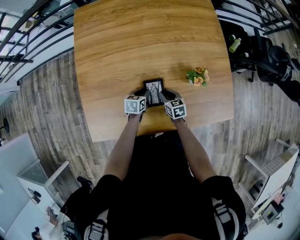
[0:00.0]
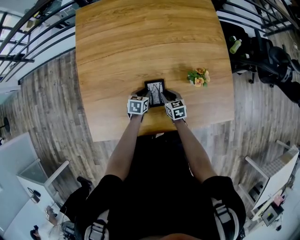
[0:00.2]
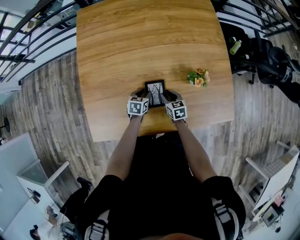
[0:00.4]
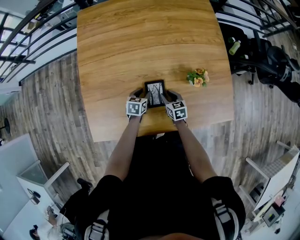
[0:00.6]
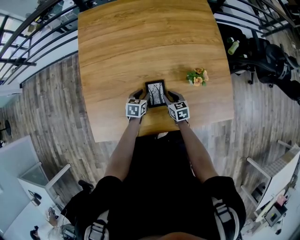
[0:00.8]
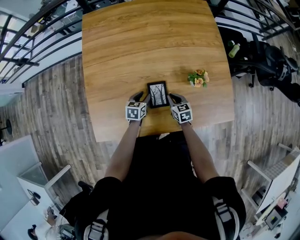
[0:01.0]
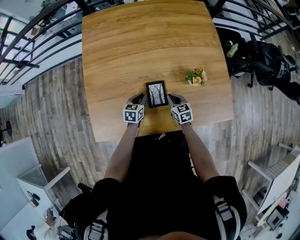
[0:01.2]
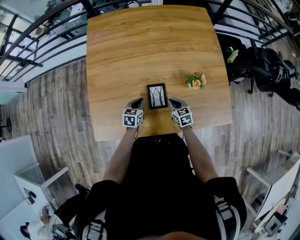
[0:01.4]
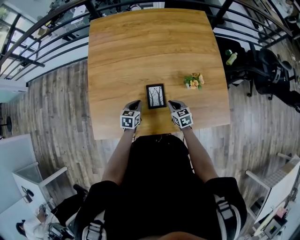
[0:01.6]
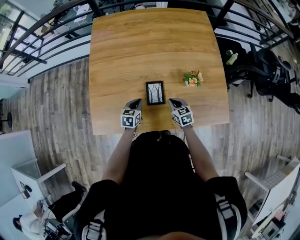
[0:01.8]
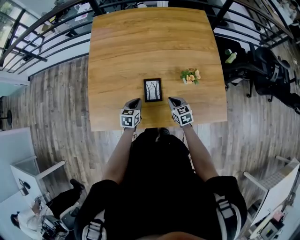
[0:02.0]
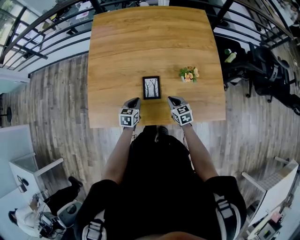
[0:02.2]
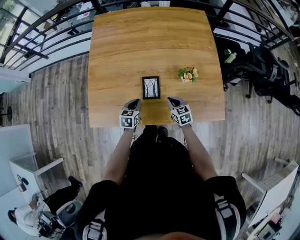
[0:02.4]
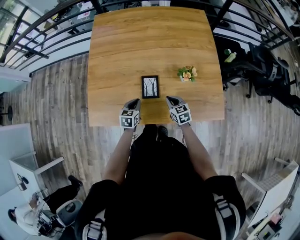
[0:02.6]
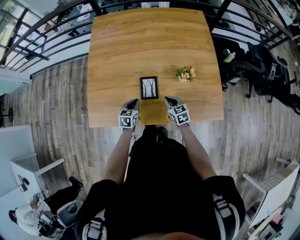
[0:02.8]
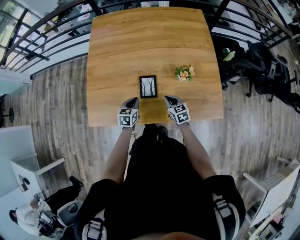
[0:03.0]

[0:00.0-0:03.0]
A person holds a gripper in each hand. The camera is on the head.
0:00.0 to 0:01.6: The right gripper shifts by about 5 cm; the left gripper is displaced upward and backward by approximately 10 cm.
0:01.6 to 0:03.0: The left gripper heads backward, covering some 5 cm. Meanwhile the right gripper moves some 5 cm.

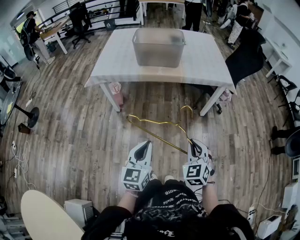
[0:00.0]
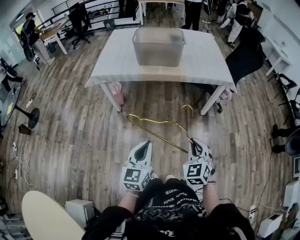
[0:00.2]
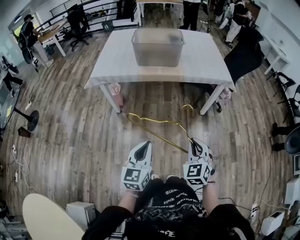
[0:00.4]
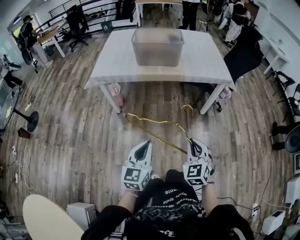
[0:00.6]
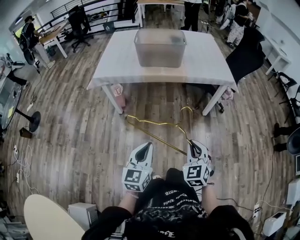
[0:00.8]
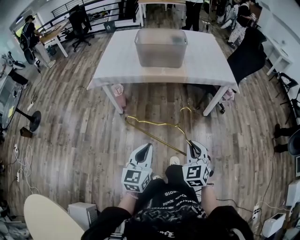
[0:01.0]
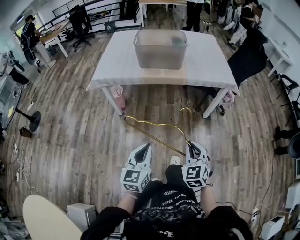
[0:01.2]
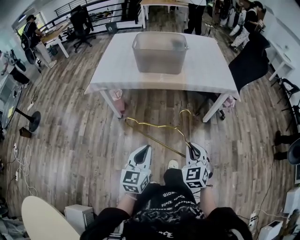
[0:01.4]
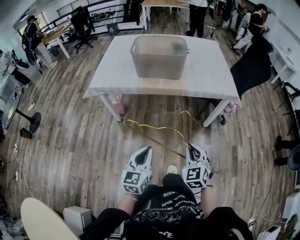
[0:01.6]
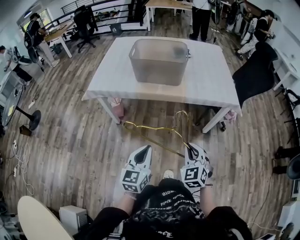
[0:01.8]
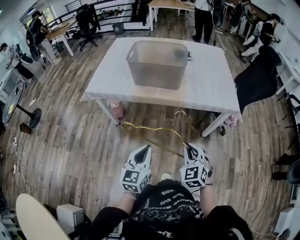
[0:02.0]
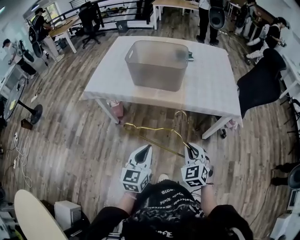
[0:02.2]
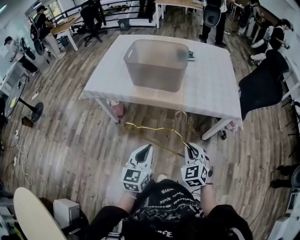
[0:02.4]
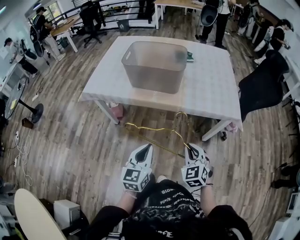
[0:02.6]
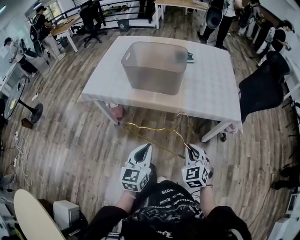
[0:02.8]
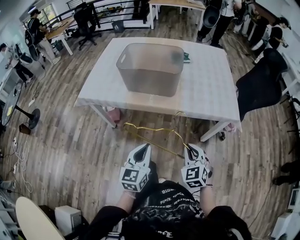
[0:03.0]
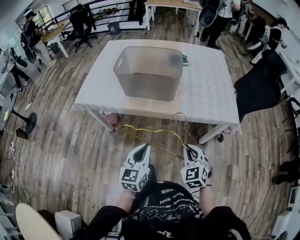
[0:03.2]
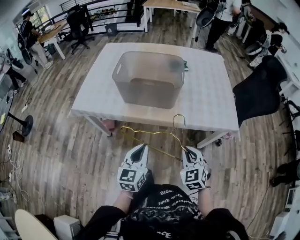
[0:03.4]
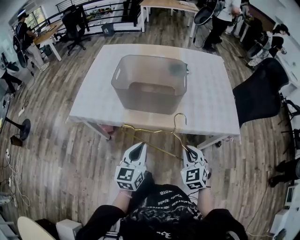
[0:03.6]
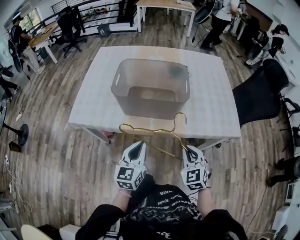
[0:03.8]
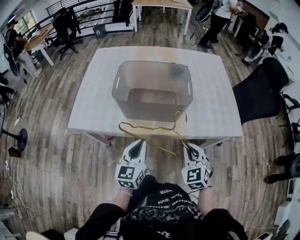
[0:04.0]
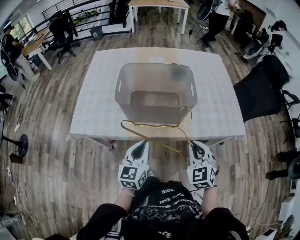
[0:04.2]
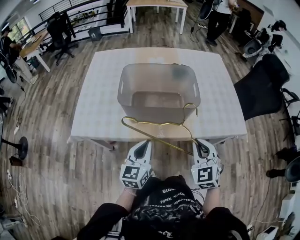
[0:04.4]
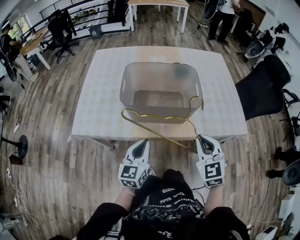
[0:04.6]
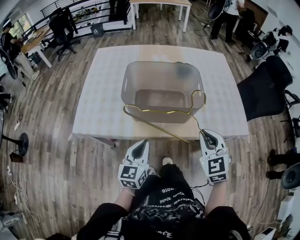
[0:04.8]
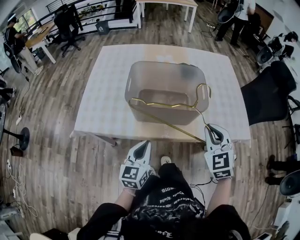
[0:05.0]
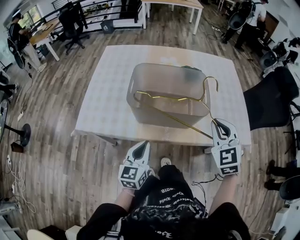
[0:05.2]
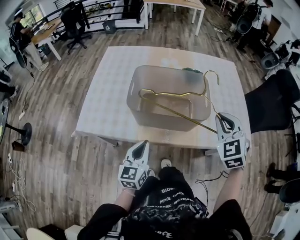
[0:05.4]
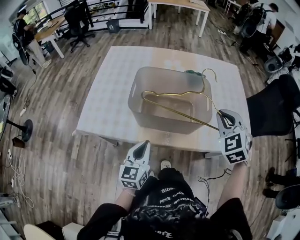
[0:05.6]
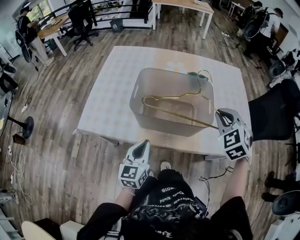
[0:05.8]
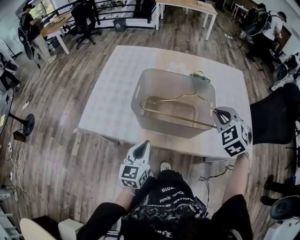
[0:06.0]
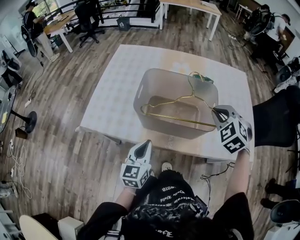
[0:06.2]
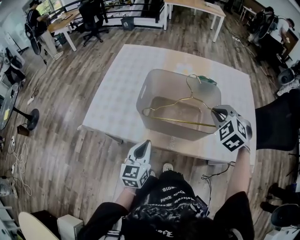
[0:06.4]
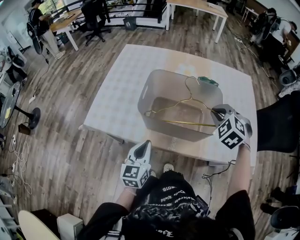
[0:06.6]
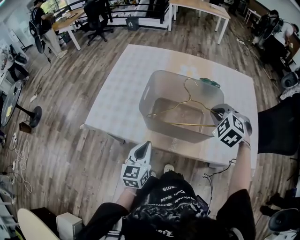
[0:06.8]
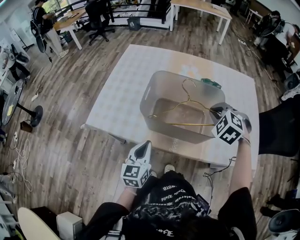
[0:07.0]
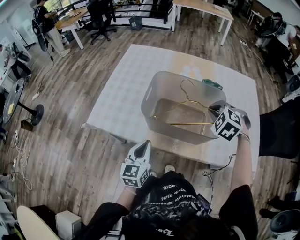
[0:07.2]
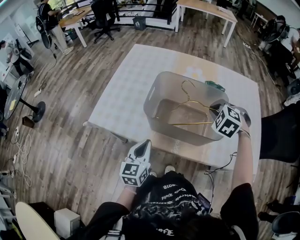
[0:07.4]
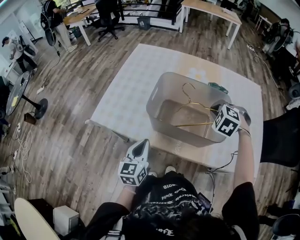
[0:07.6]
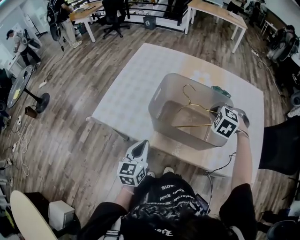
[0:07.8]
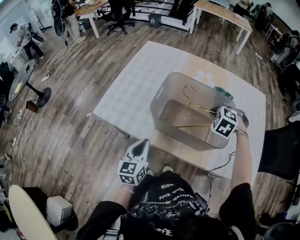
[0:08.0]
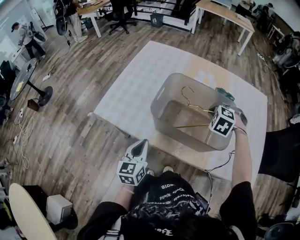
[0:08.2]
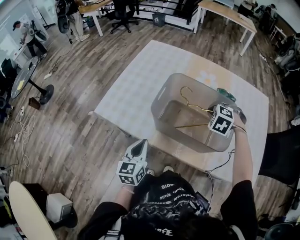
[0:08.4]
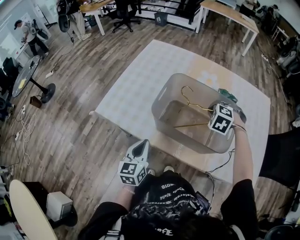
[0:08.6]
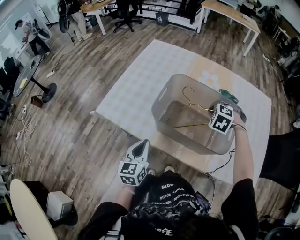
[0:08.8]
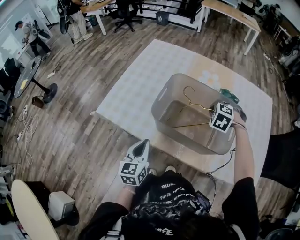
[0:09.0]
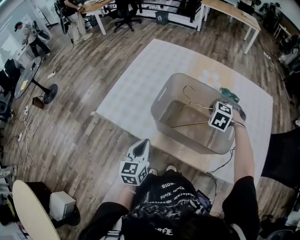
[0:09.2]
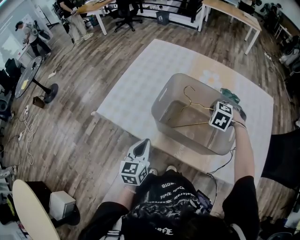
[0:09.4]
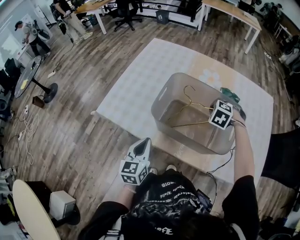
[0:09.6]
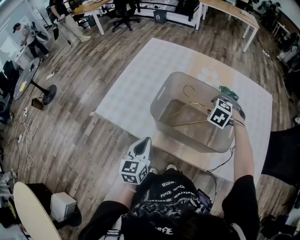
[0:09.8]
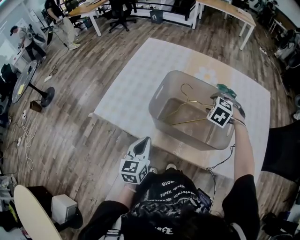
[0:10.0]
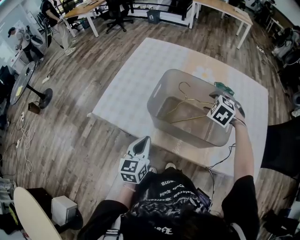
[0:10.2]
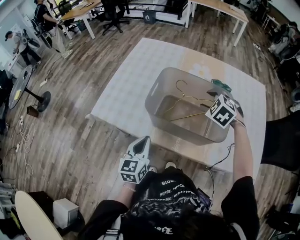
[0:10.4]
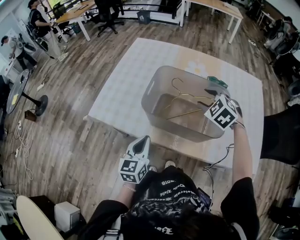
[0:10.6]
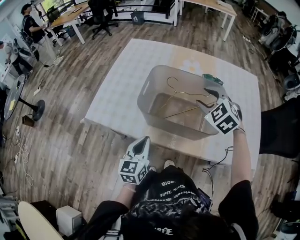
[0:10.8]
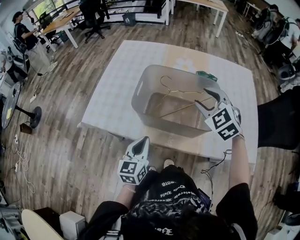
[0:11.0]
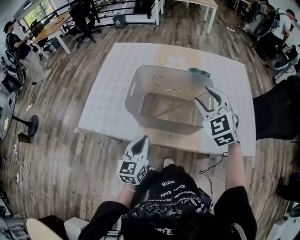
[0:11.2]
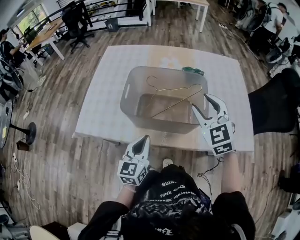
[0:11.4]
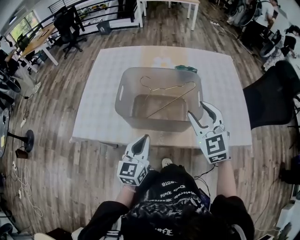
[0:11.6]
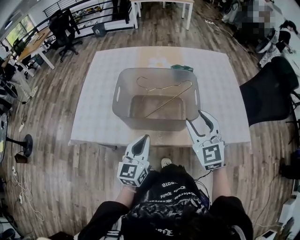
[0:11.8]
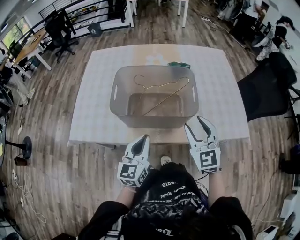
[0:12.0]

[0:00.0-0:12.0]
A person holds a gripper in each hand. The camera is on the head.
0:00.0 to 0:01.6: The grippers both shift forward by roughly 15 cm.
0:01.6 to 0:03.0: Both grippers travel together forward and to the right, some 25 cm.
0:03.0 to 0:04.4: The two grippers go some 35 cm forward and to the left.
0:04.4 to 0:06.0: The left gripper heads forward, covering roughly 5 cm. The right gripper goes about 20 cm forward, and rotates some 20 degrees.
0:06.0 to 0:07.6: The right gripper heads forward, downward and to the left, covering some 15 cm, and rotates approximately 30 degrees. Meanwhile the left gripper goes some 5 cm to the left.
0:07.6 to 0:09.0: The right gripper moves forward and downward, approximately 10 cm.
0:09.0 to 0:10.4: The right gripper shifts about 5 cm upward, and opens up.
0:10.4 to 0:12.0: The right gripper goes approximately 20 cm backward, and tips its fingers upward by roughly 40 degrees; the left gripper is displaced to the right by some 10 cm, and rotates some 20 degrees.

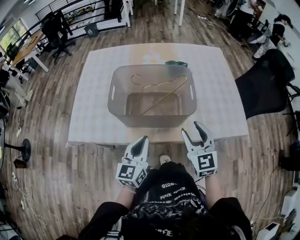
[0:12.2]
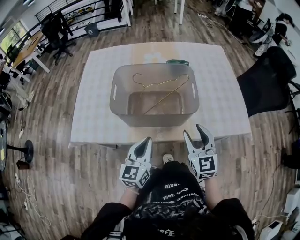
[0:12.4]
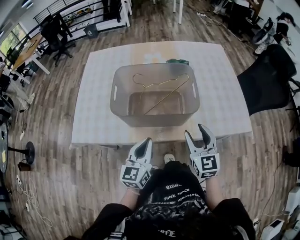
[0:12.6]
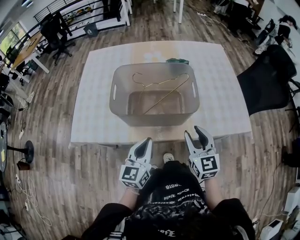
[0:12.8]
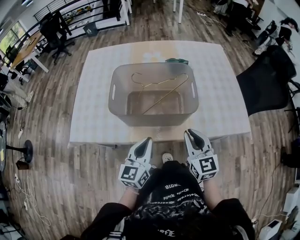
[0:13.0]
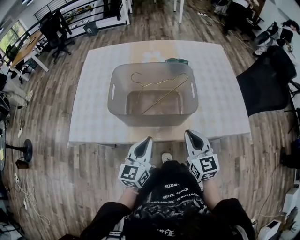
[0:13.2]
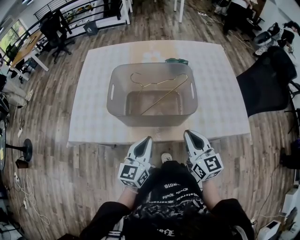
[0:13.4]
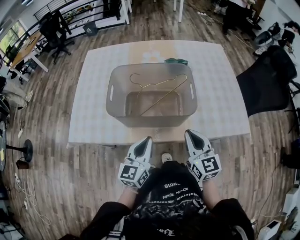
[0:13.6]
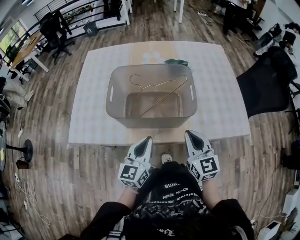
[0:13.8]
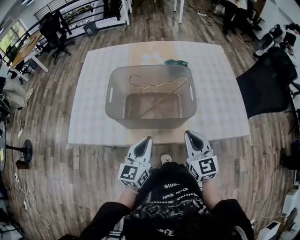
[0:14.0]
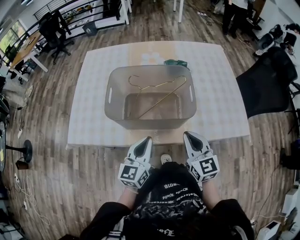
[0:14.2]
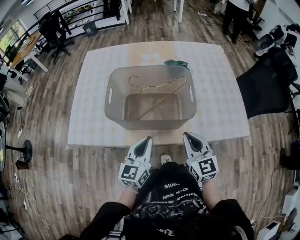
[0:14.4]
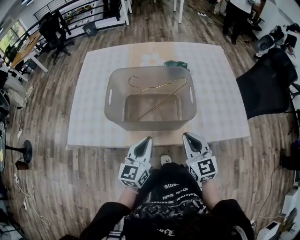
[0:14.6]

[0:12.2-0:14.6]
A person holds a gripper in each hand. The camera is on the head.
0:12.2 to 0:13.4: The right gripper swivels about 20 degrees, and closes its fingers.
0:13.4 to 0:14.6: The grippers stay close to where they were, moving slightly.

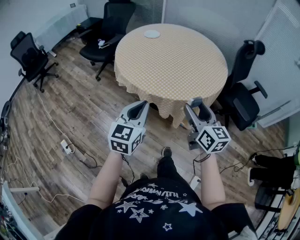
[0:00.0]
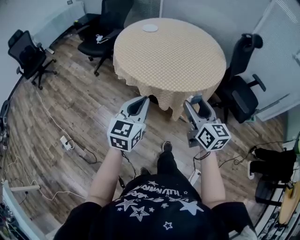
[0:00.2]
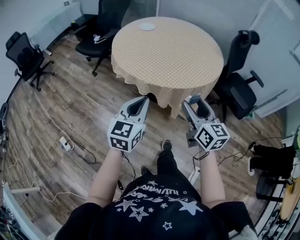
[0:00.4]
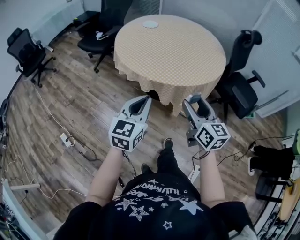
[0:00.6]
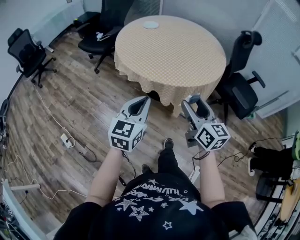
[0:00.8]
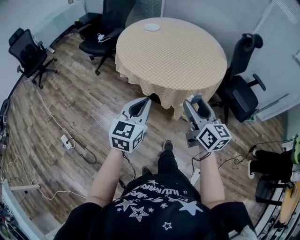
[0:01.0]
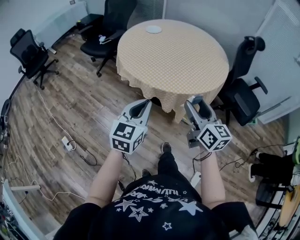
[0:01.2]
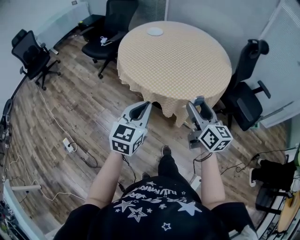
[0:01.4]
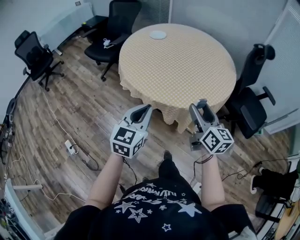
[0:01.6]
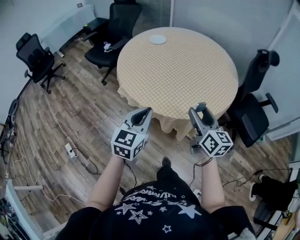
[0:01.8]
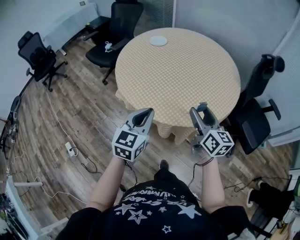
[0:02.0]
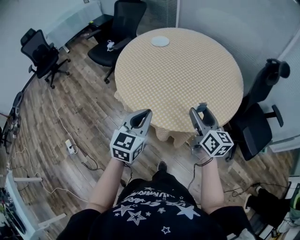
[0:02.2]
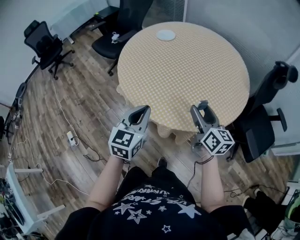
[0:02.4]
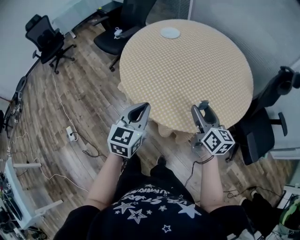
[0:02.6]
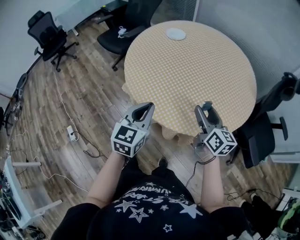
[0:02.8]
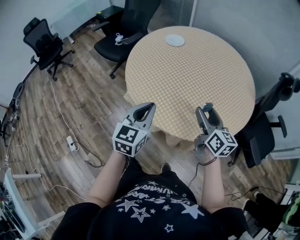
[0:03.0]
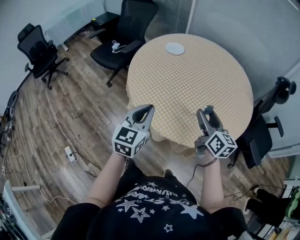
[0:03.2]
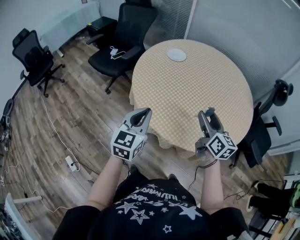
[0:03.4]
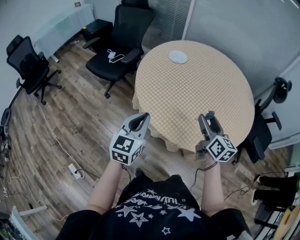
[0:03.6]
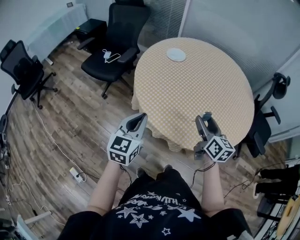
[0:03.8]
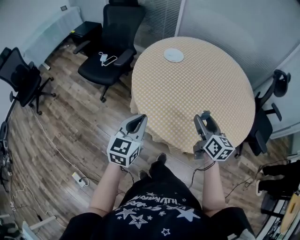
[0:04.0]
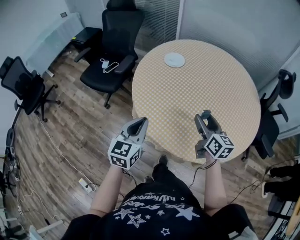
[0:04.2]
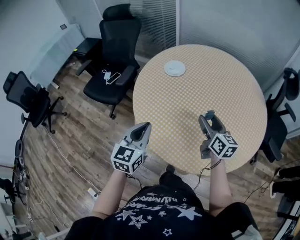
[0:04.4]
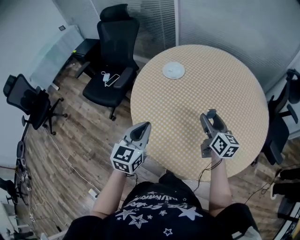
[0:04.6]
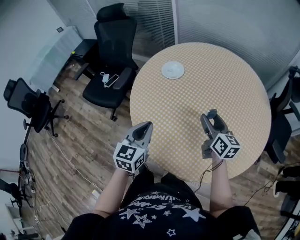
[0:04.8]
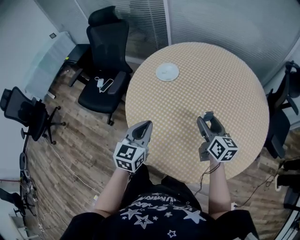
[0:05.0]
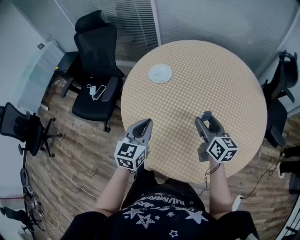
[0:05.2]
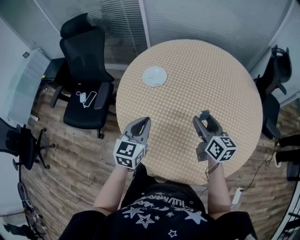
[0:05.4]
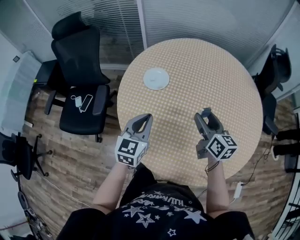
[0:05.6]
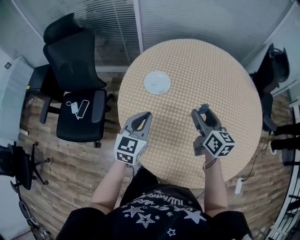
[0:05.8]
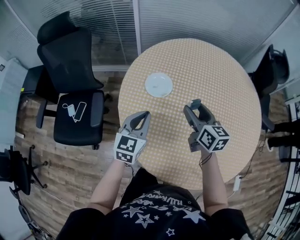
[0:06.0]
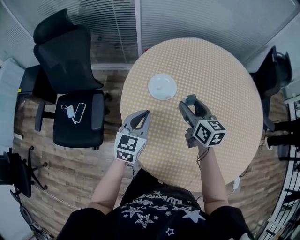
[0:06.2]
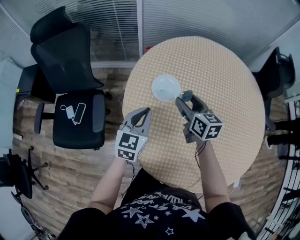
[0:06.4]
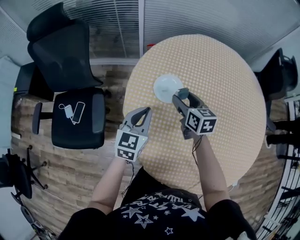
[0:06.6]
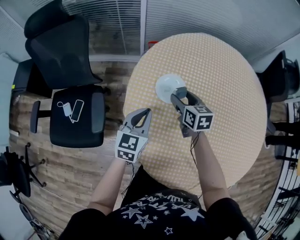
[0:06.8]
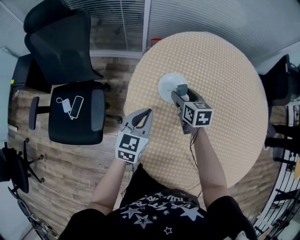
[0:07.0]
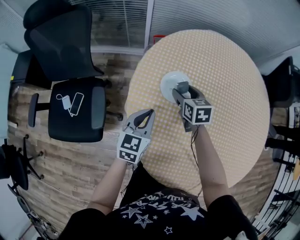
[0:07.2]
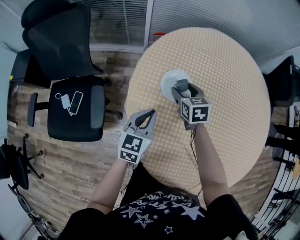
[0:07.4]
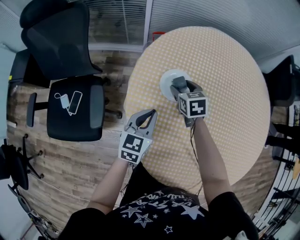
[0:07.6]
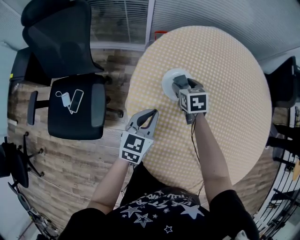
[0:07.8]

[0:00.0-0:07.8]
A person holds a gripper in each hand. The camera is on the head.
0:00.0 to 0:01.6: The grippers both shift forward by about 5 cm.
0:01.6 to 0:03.2: Both grippers travel together forward, roughly 20 cm.
0:03.2 to 0:04.6: The left gripper goes some 20 cm forward and to the left. The right gripper moves forward, approximately 20 cm.
0:04.6 to 0:06.2: Both grippers travel together forward and to the left, roughly 30 cm. The left gripper swivels some 30 degrees.
0:06.2 to 0:07.8: The left gripper is displaced downward by approximately 5 cm; the right gripper heads downward, forward and to the left, covering roughly 20 cm, and rotates roughly 30 degrees.
